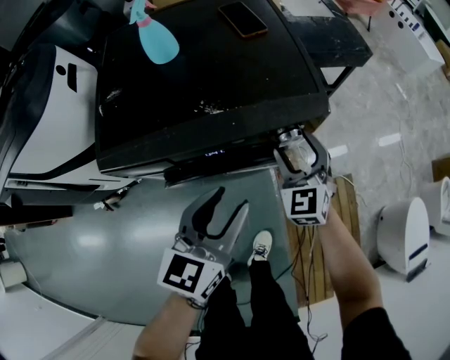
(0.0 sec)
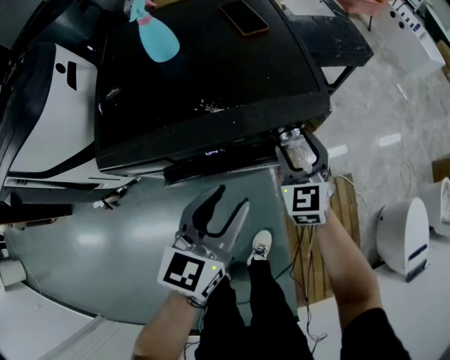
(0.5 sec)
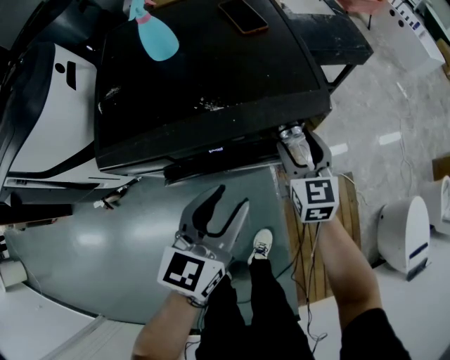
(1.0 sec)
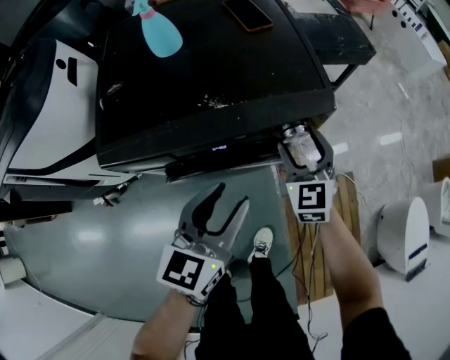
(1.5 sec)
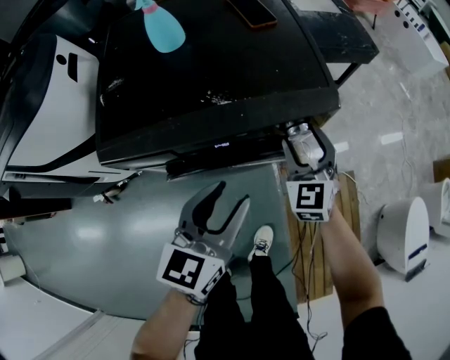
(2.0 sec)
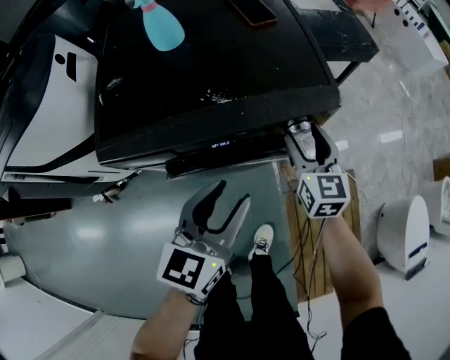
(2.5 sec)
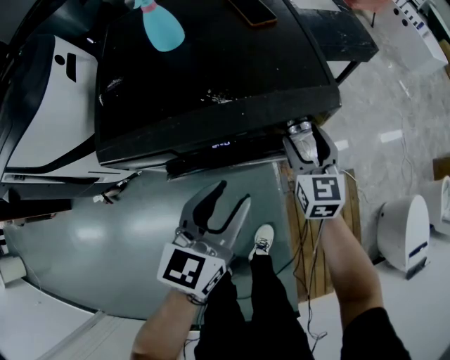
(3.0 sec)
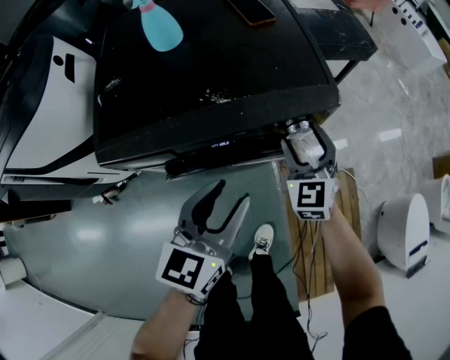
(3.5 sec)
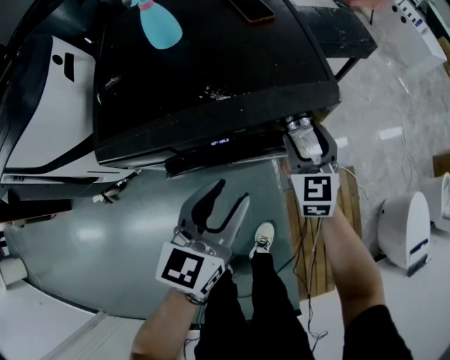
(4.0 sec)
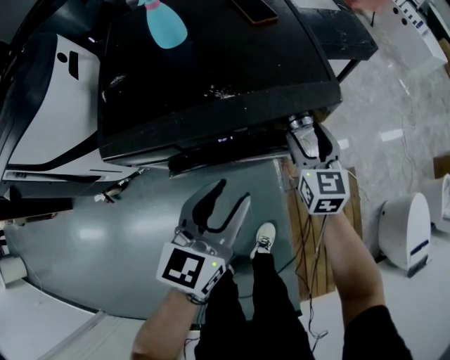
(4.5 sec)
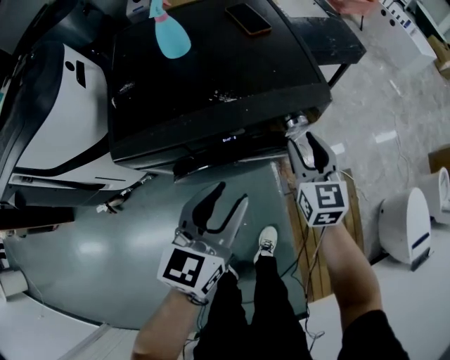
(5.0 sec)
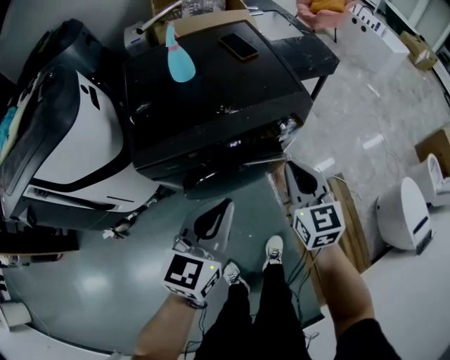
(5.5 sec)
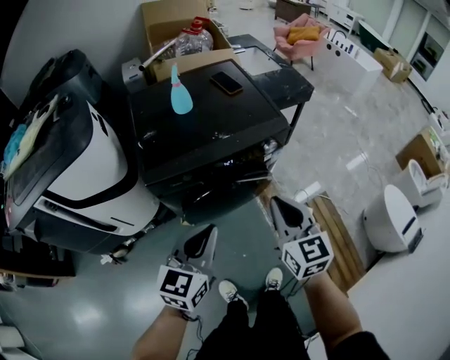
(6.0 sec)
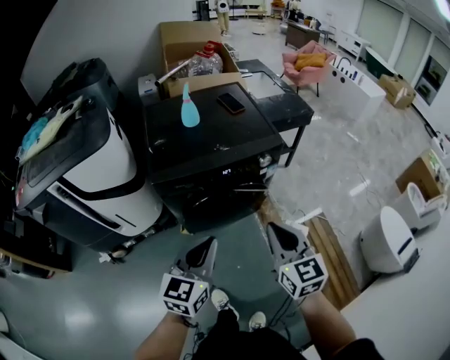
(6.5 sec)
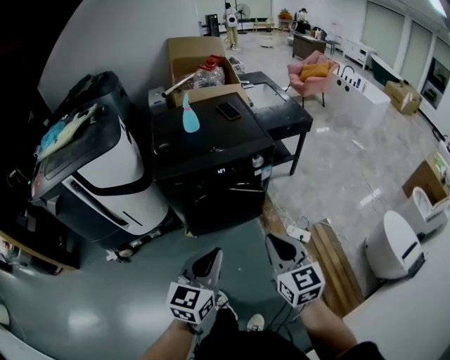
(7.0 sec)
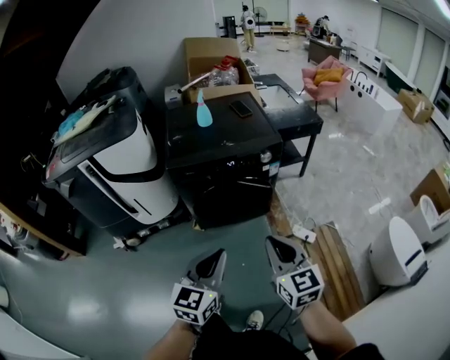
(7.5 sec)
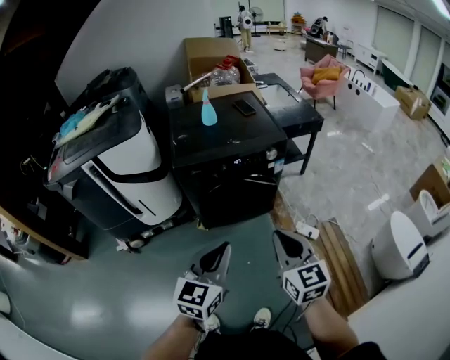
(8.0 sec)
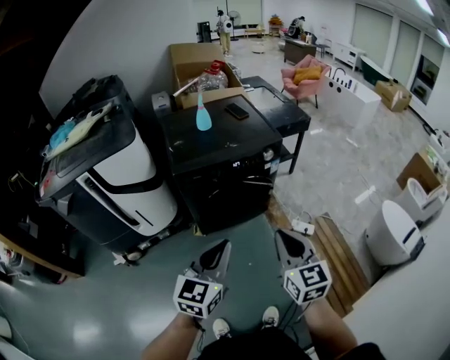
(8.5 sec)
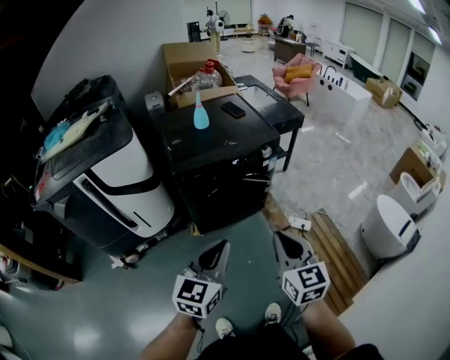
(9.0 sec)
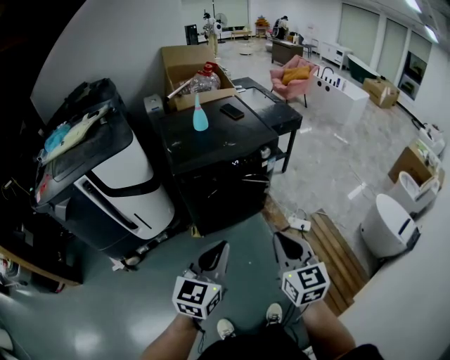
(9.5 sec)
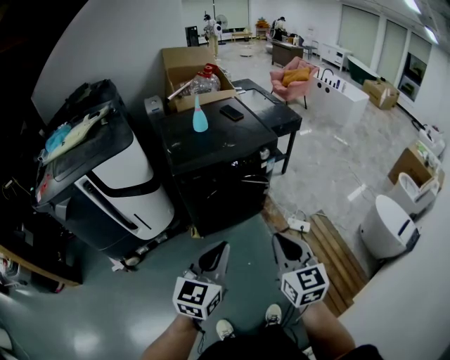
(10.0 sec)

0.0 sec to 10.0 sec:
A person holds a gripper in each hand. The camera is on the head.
4.0 sec to 6.0 sec: The right gripper travels backward and upward by some 35 cm, and closes its fingers. The left gripper travels backward, upward and to the left by roughly 25 cm, and closes its fingers.
6.0 sec to 8.0 sec: Both grippers travel together backward, approximately 25 cm.
8.0 sec to 10.0 sec: The right gripper heads to the left and backward, covering about 10 cm; the left gripper shifts approximately 10 cm to the left.

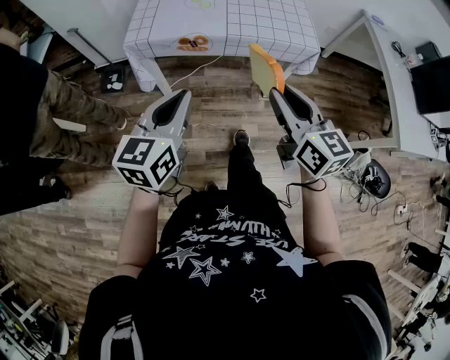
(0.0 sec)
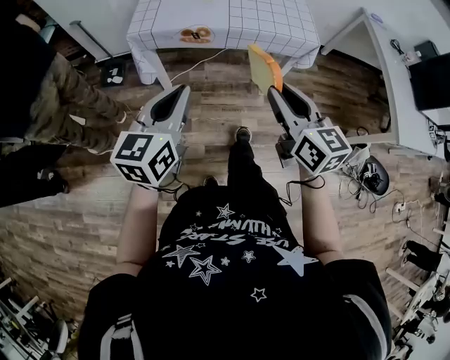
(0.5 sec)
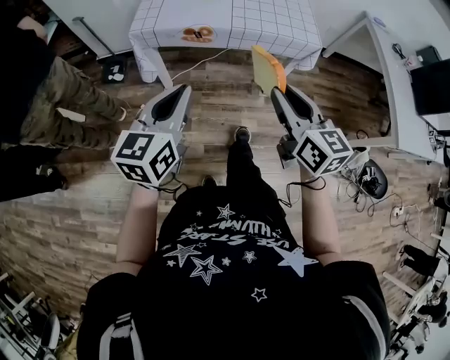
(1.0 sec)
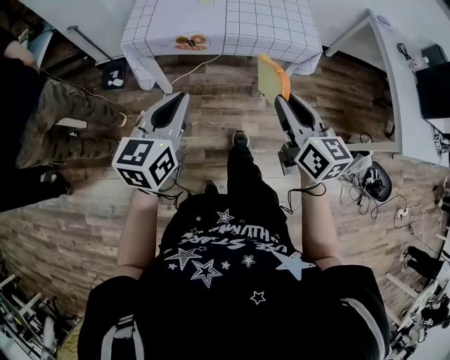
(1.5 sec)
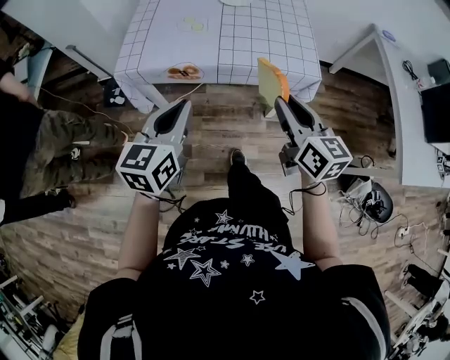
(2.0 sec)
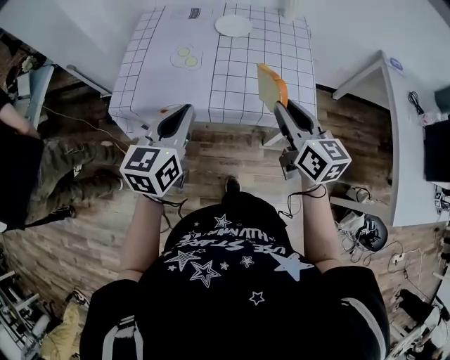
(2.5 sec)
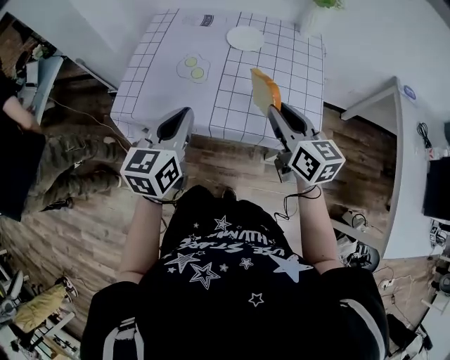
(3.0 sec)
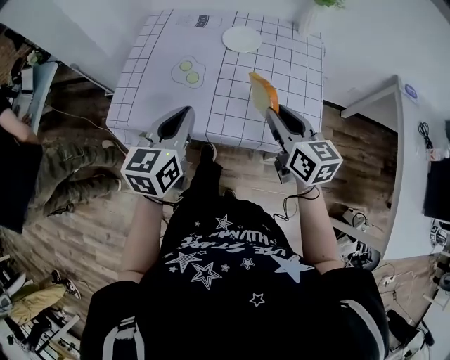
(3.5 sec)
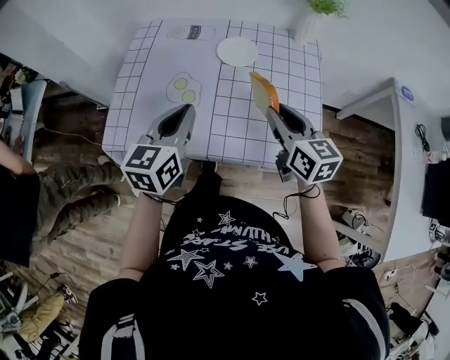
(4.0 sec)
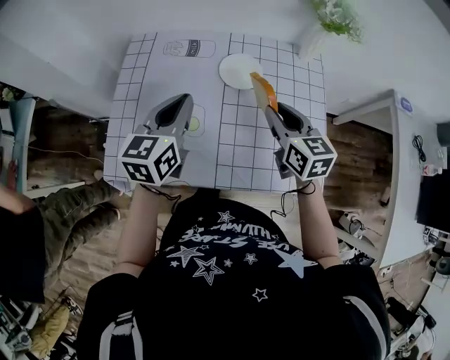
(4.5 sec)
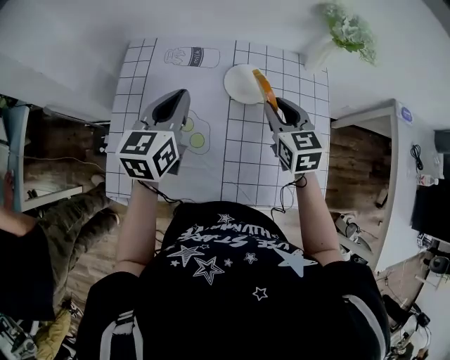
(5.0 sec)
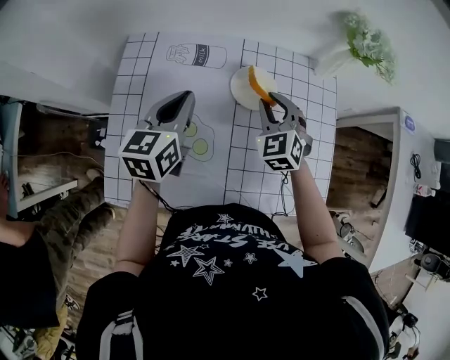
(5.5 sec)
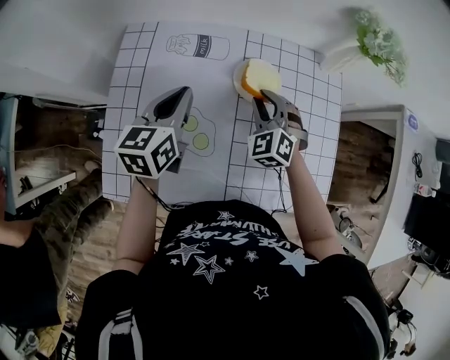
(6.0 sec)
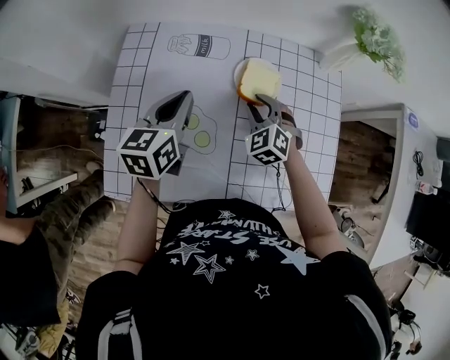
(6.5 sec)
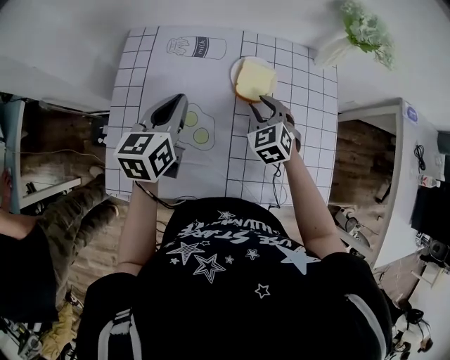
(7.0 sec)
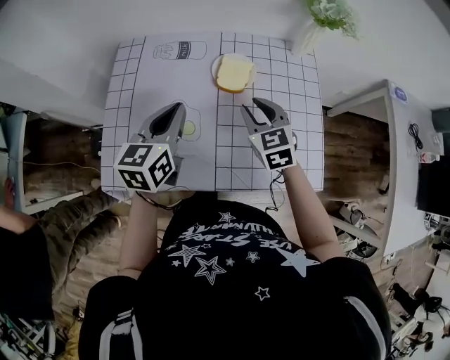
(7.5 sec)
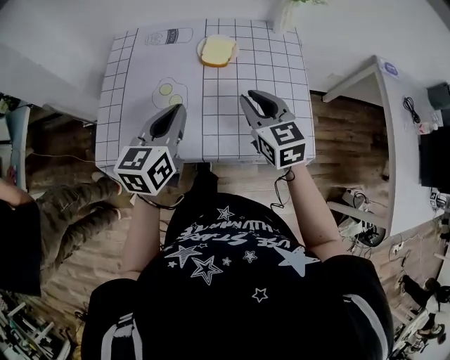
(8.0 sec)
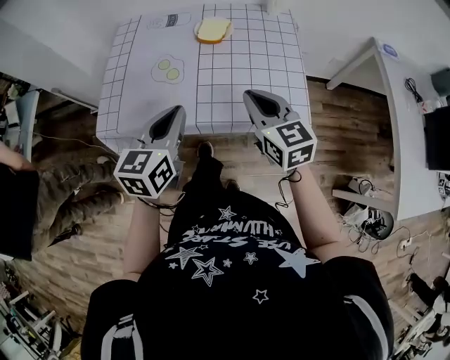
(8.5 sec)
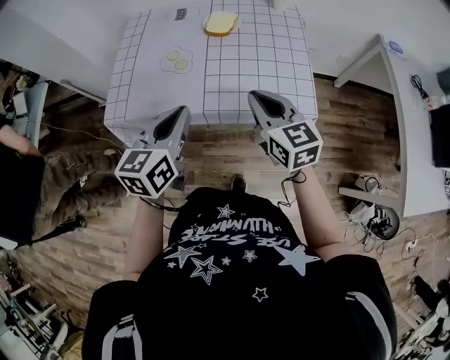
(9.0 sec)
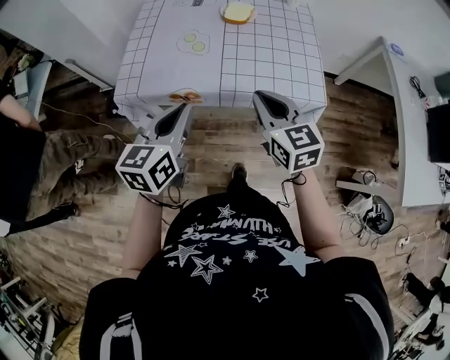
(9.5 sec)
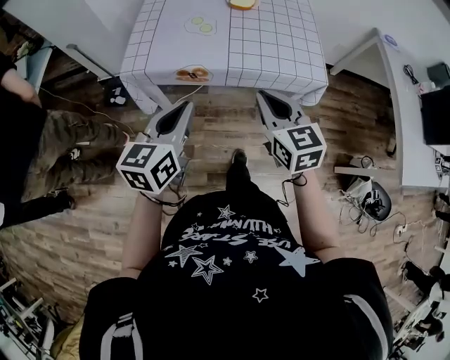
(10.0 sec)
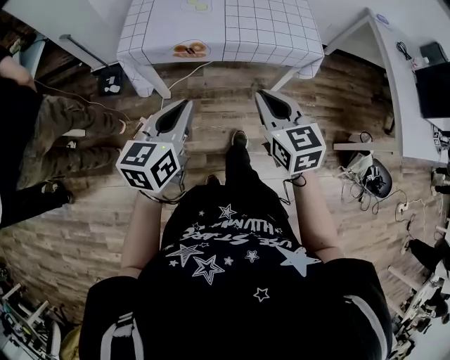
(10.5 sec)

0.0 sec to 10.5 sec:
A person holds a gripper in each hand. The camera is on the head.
0.0 sec to 2.0 sec: Both grippers move forward and to the right, some 15 cm.
2.0 sec to 4.0 sec: The two grippers go roughly 30 cm forward.
4.0 sec to 6.5 sec: The left gripper moves forward and to the left, some 25 cm; the right gripper is displaced forward, downward and to the left by some 30 cm, and twists about 50 degrees counterclockwise, seen from behind.
6.5 sec to 8.5 sec: The left gripper shifts some 30 cm backward, while the right gripper moves backward and upward, about 35 cm, rolls clockwise, seen from behind, by roughly 40 degrees, and closes.
8.5 sec to 10.5 sec: Both grippers move backward and to the left, approximately 25 cm.

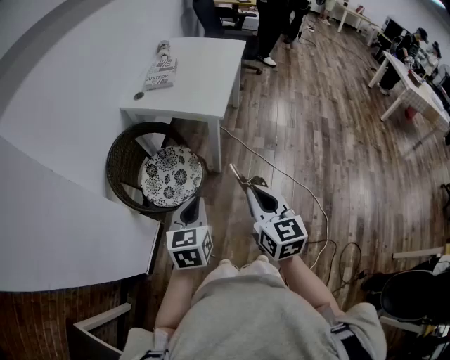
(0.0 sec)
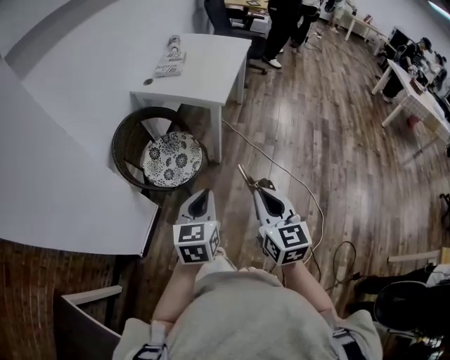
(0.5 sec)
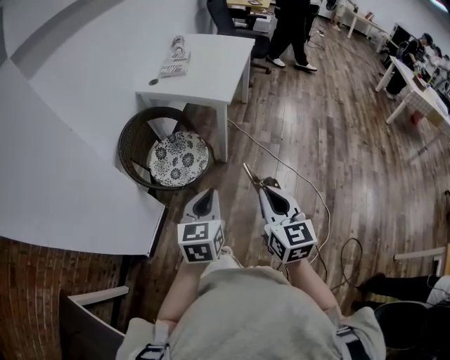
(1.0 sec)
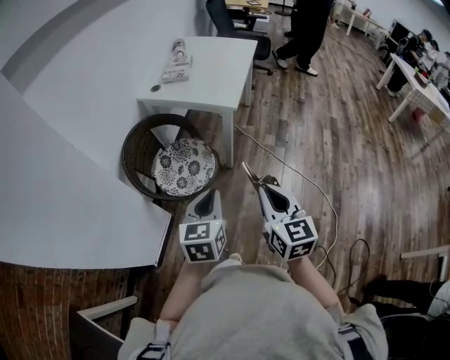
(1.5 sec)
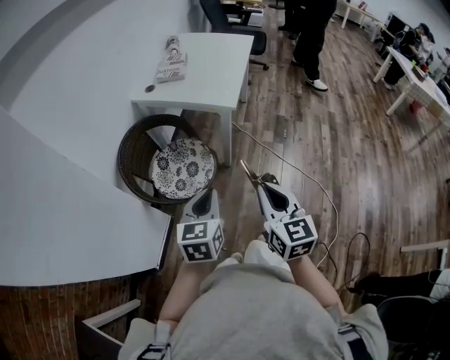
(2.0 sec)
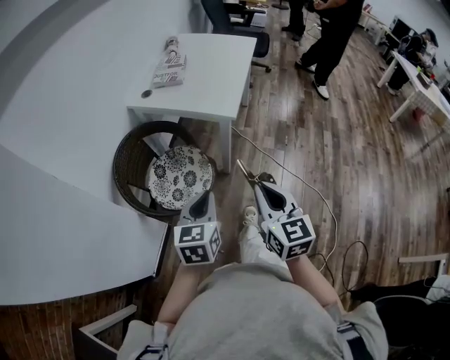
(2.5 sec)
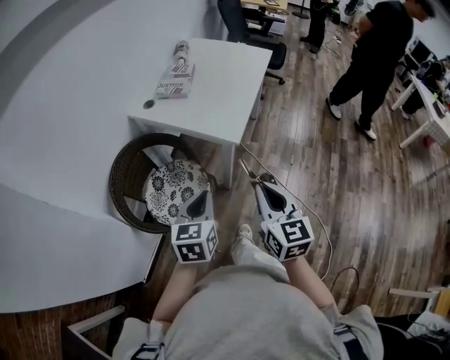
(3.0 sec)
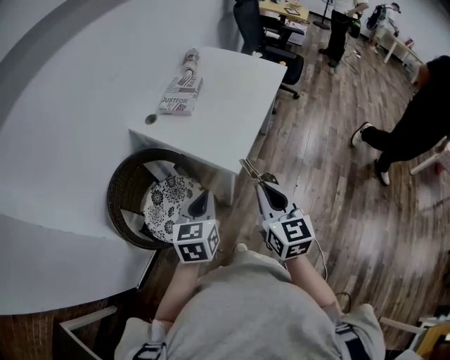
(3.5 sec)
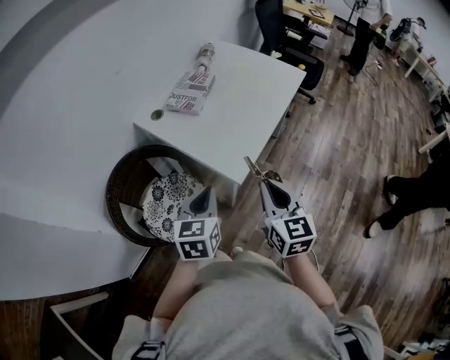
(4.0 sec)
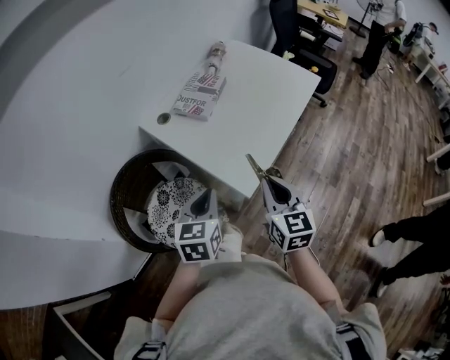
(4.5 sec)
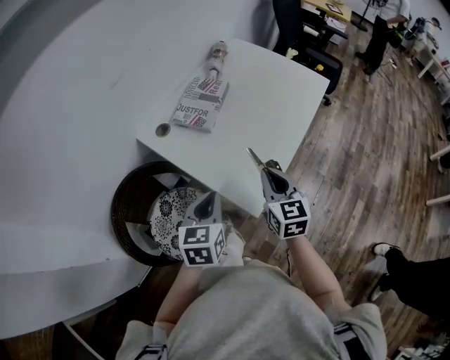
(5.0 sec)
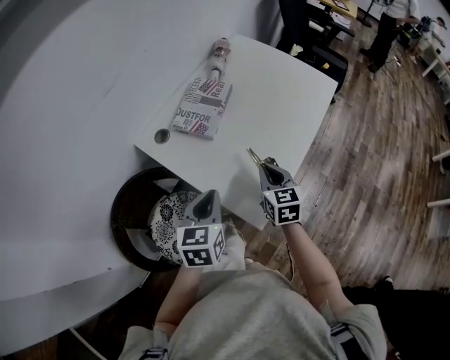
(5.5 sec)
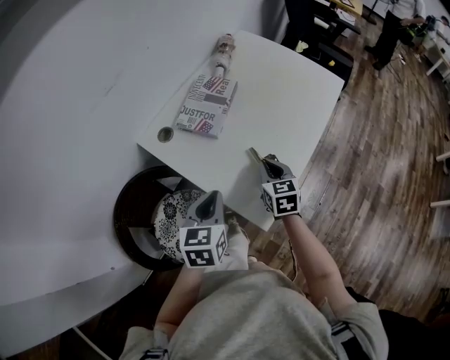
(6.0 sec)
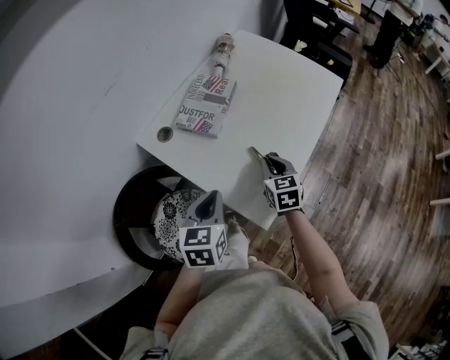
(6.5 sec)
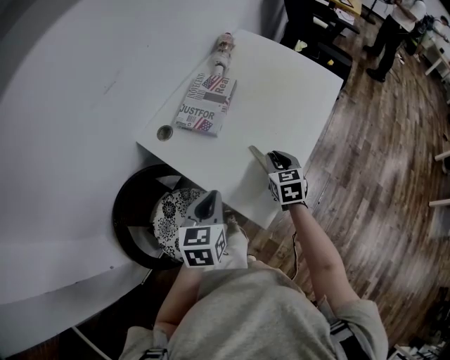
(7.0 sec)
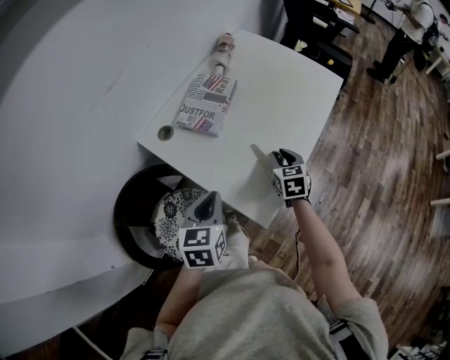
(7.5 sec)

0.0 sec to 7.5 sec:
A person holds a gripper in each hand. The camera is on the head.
0.0 sec to 2.0 sec: The left gripper reaches about 10 cm backward, then returns. The right gripper moves roughly 15 cm backward and comes back.
2.0 sec to 4.0 sec: The grippers both shift forward by about 40 cm.
4.0 sec to 5.5 sec: The left gripper heads forward, covering some 20 cm, while the right gripper travels forward and downward by approximately 30 cm.
5.5 sec to 7.5 sec: The right gripper is displaced downward and forward by approximately 10 cm, and opens.
